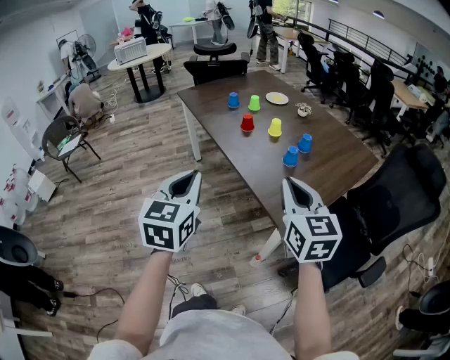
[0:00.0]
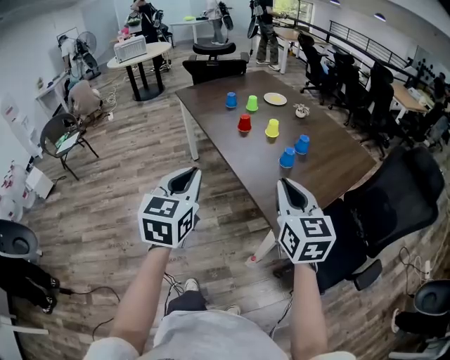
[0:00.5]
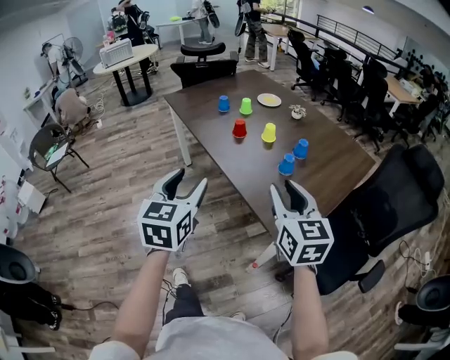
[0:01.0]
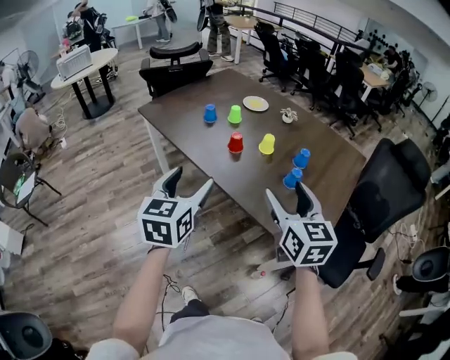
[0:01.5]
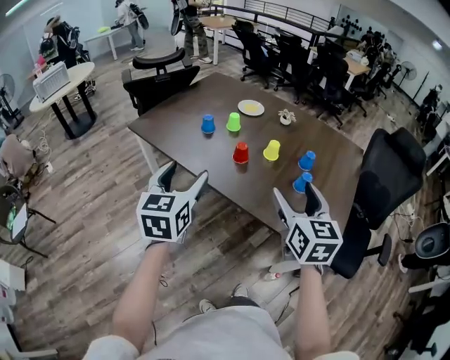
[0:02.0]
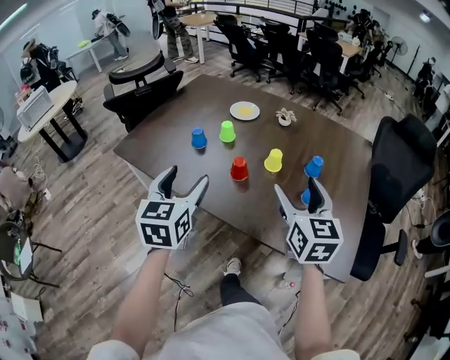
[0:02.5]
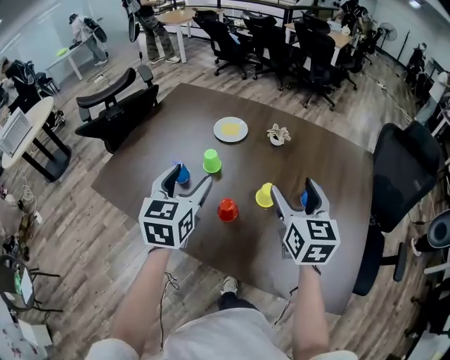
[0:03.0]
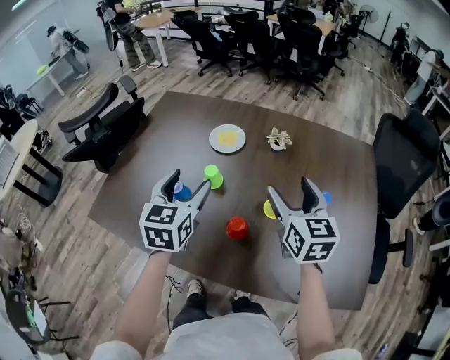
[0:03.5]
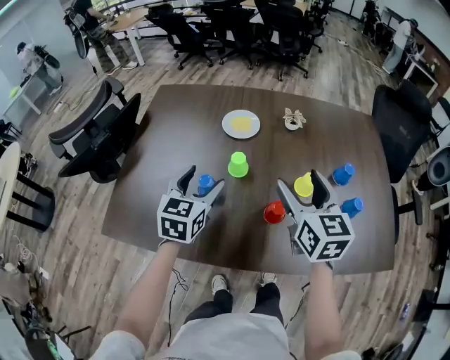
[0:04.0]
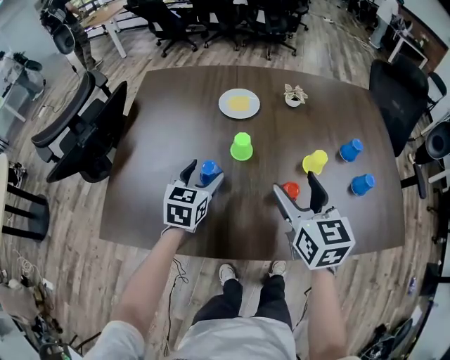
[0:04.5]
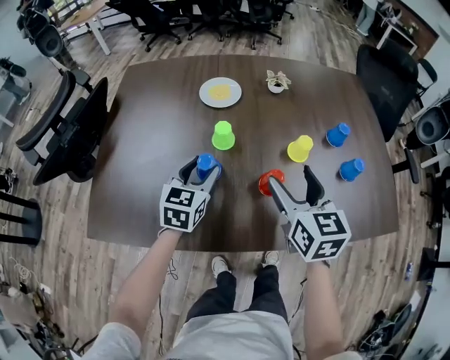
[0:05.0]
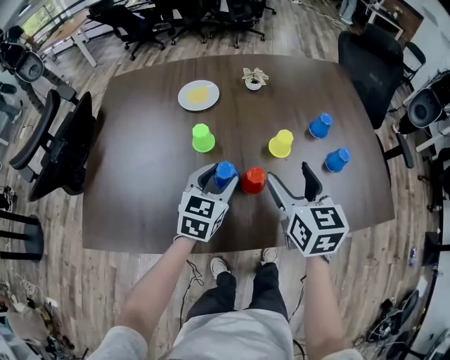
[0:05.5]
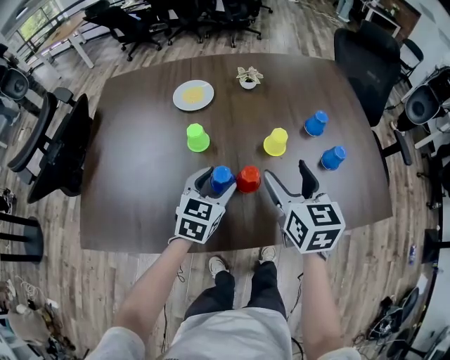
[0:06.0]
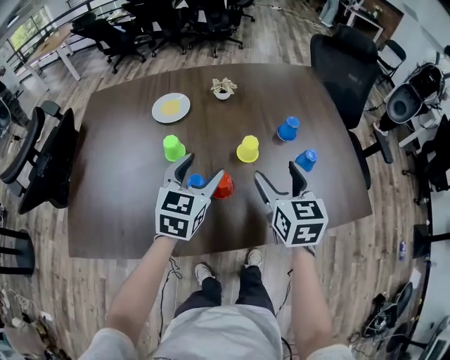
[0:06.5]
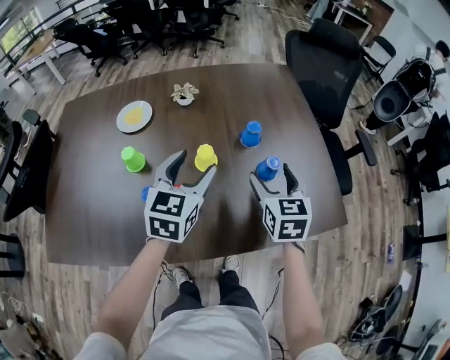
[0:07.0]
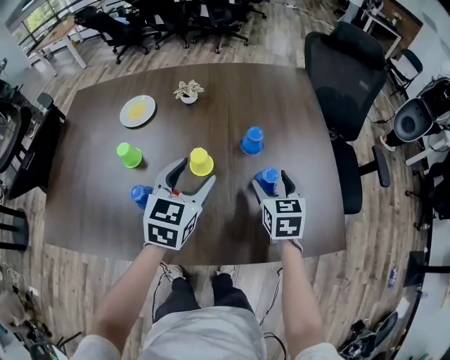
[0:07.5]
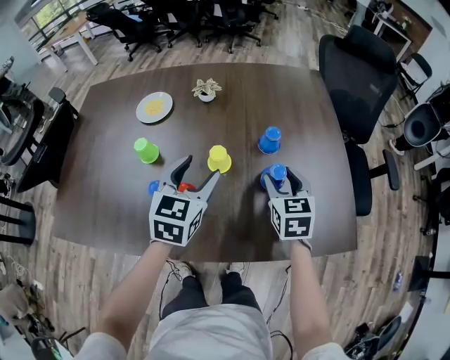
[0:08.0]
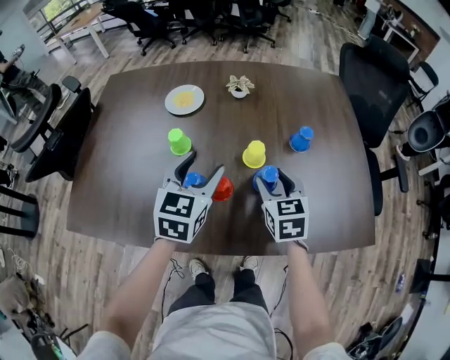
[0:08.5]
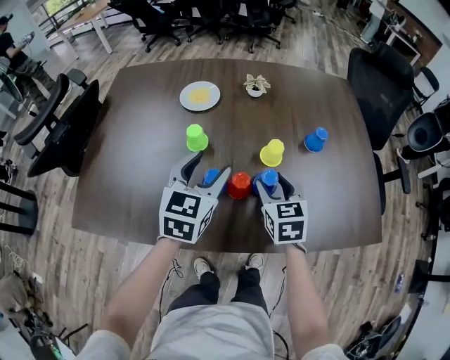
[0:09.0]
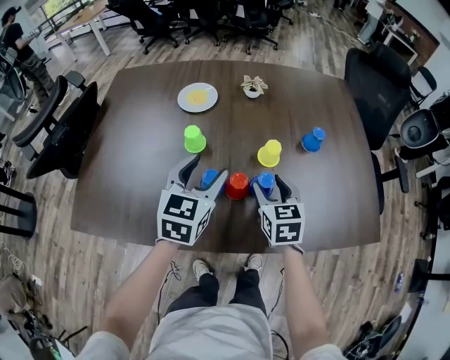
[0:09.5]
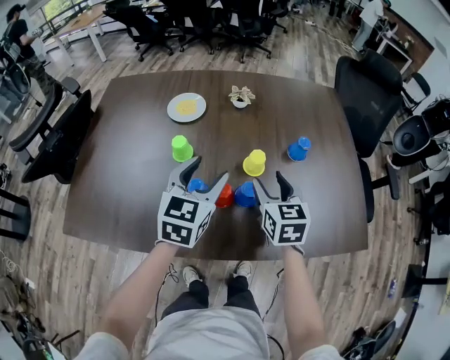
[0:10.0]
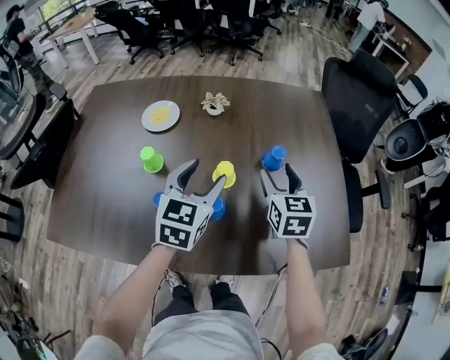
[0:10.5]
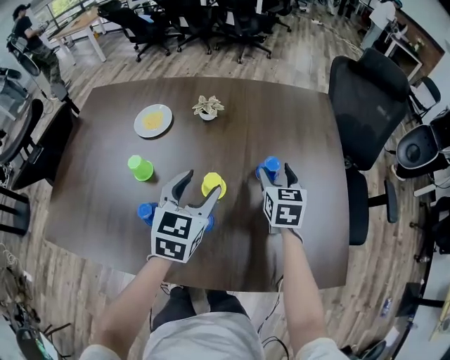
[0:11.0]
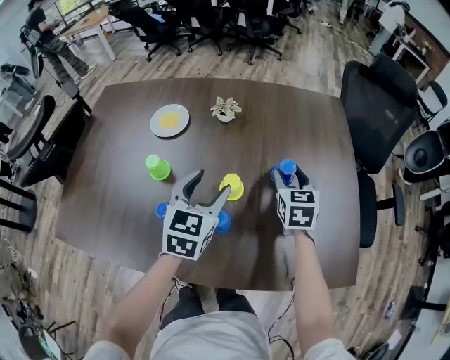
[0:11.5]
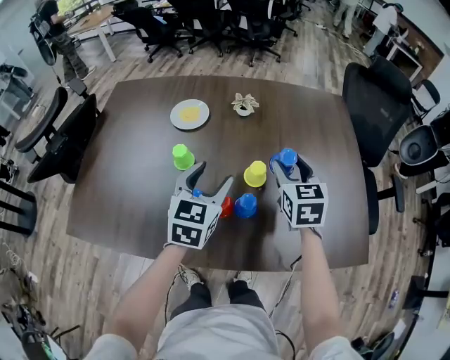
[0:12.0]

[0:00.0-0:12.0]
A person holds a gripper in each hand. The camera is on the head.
0:00.0 to 0:02.0: The left gripper moves about 40 cm, rotates about 20 degrees, and opens its fingers. The right gripper moves roughly 25 cm, turns by about 30 degrees, and opens.
0:02.0 to 0:04.0: The right gripper shifts by some 35 cm, and turns by approximately 20 degrees. The left gripper changes place by roughly 40 cm, and turns by some 40 degrees.
0:04.0 to 0:06.0: The left gripper travels to the right and downward by about 20 cm, and changes its angle by some 20 degrees; the right gripper moves downward and to the right, about 10 cm.
0:06.0 to 0:08.0: The right gripper travels to the right, forward and downward by some 20 cm, and closes its fingers. The left gripper moves to the right, upward and forward, roughly 20 cm.
0:08.0 to 0:10.0: The grippers both shift to the left by some 15 cm.
0:10.0 to 0:12.0: The right gripper moves forward, roughly 10 cm. Meanwhile the left gripper reaches about 10 cm to the right, then returns.

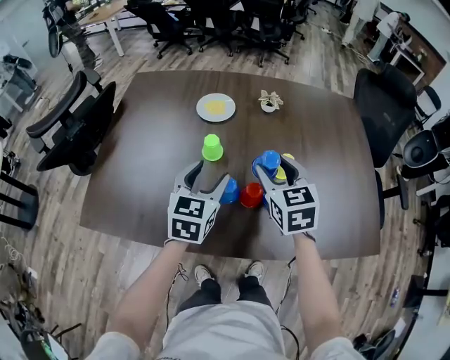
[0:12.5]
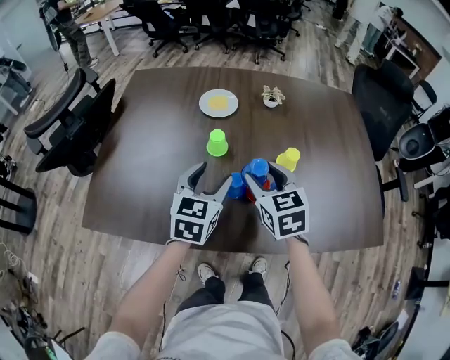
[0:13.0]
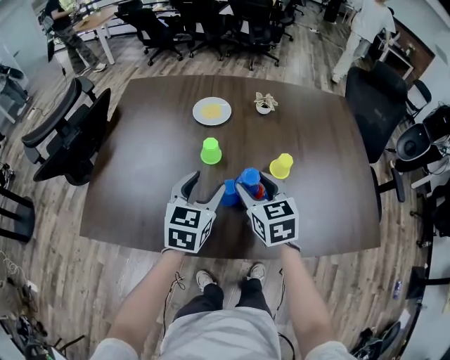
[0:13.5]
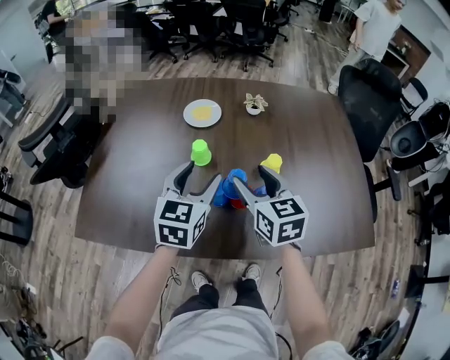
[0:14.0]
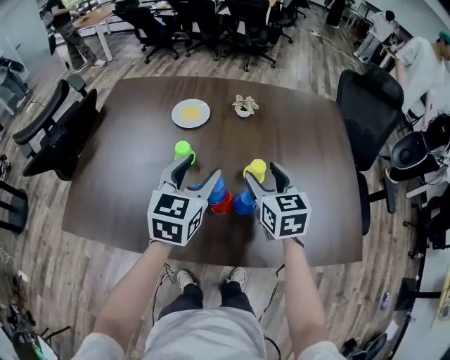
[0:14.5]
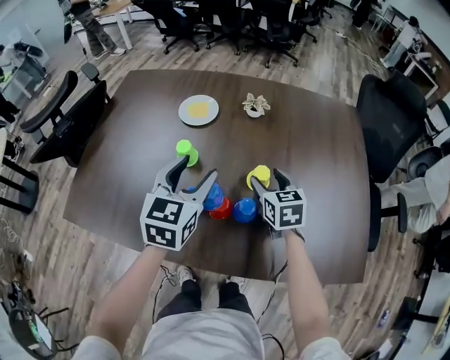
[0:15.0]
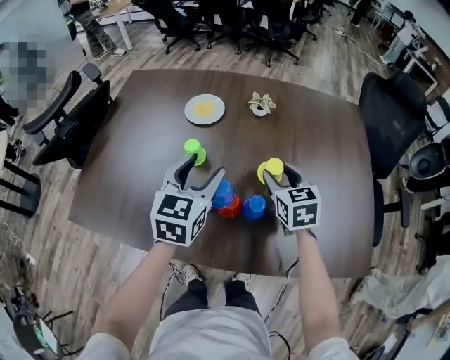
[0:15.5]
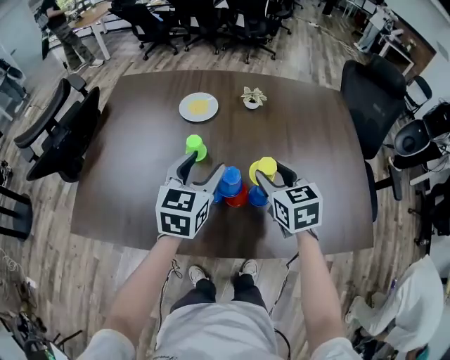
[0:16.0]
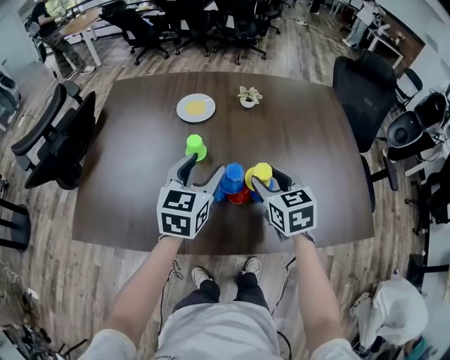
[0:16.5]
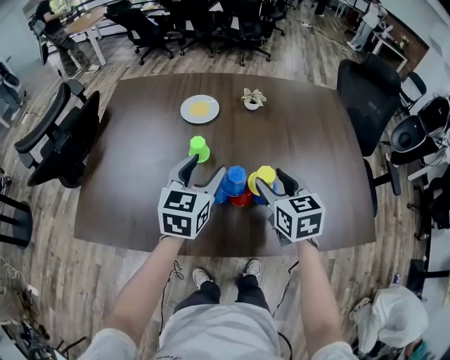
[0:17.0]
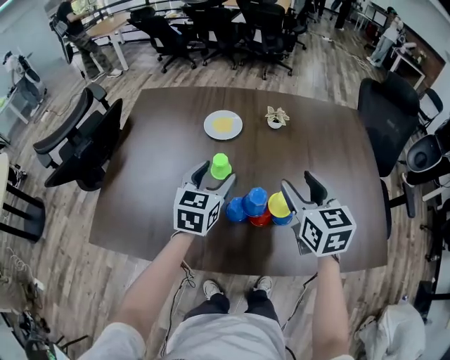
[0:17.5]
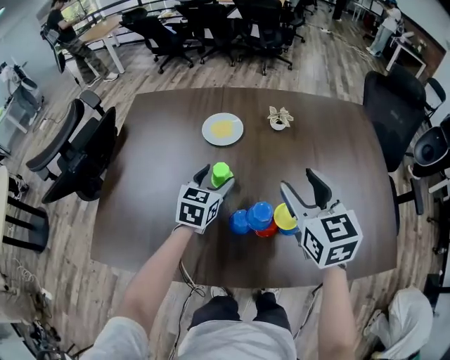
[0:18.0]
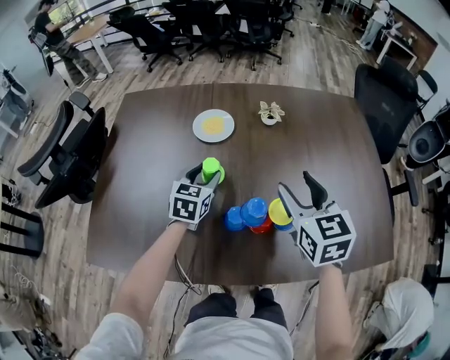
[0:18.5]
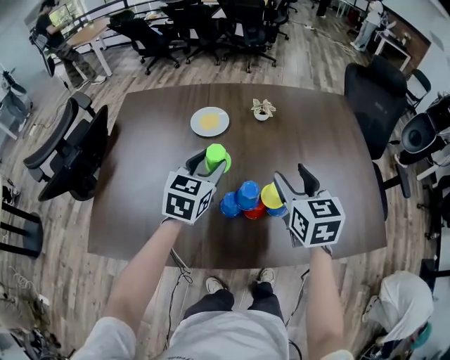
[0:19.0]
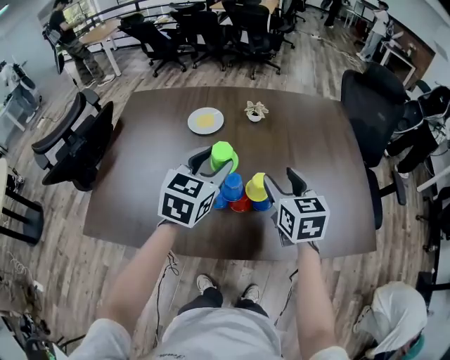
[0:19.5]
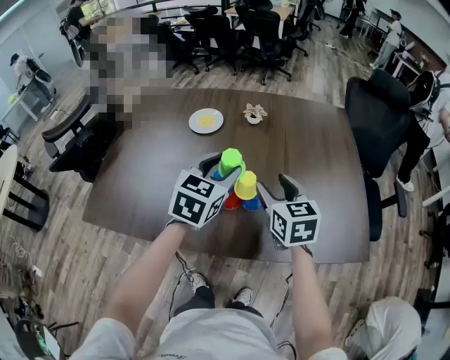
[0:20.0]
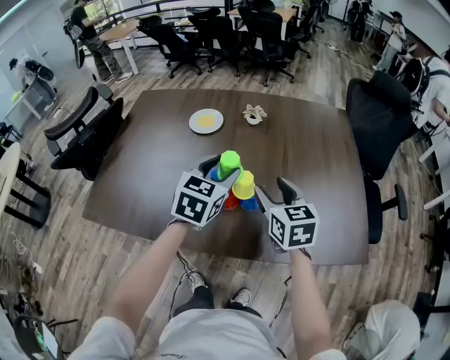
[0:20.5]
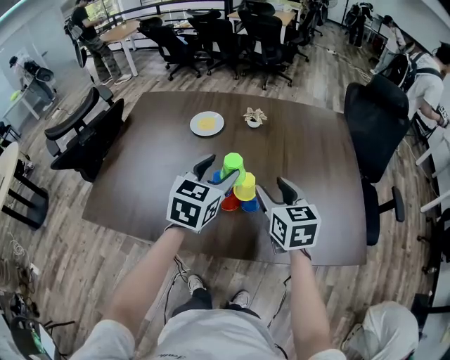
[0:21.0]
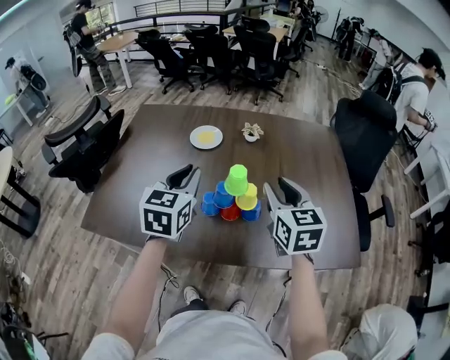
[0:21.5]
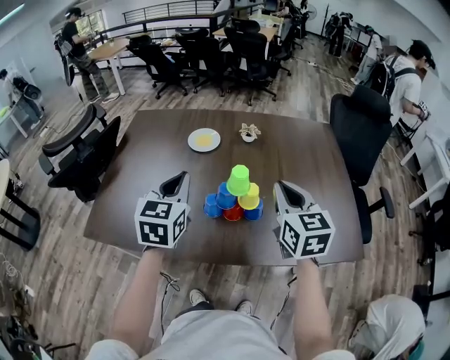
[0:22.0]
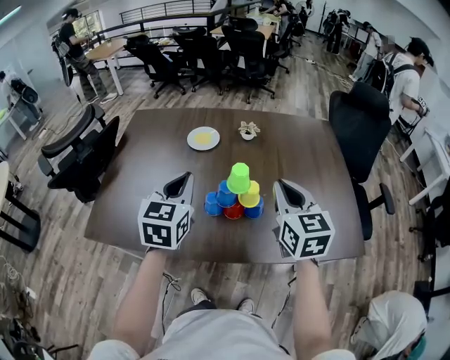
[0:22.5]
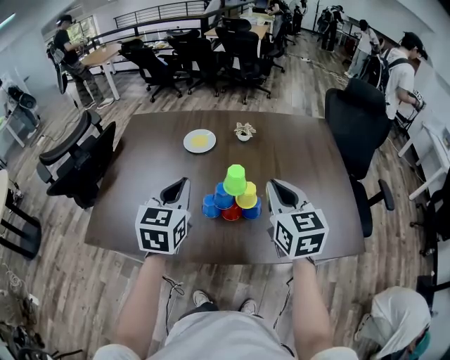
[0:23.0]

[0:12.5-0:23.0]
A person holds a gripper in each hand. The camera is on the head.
0:12.5 to 0:14.5: Both grippers move to the right, some 5 cm.
0:14.5 to 0:16.5: The right gripper moves roughly 10 cm downward and comes back.
0:16.5 to 0:19.0: The right gripper goes about 5 cm upward. Meanwhile the left gripper travels forward by approximately 5 cm, and reaches about 10 cm downward, then returns.
0:19.0 to 0:21.0: The left gripper goes approximately 15 cm to the right, backward and upward; the right gripper is displaced backward by some 5 cm.
0:21.0 to 0:23.0: The right gripper is displaced upward by about 10 cm, and closes its fingers; the left gripper shifts approximately 10 cm to the left, and closes up.

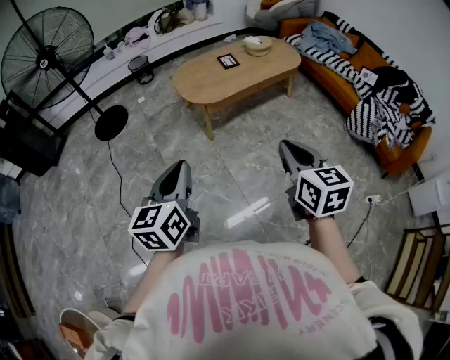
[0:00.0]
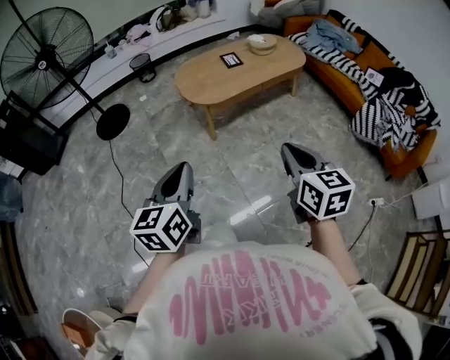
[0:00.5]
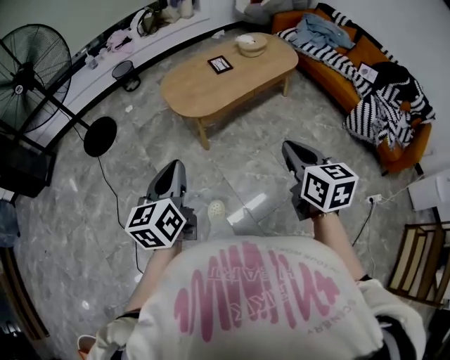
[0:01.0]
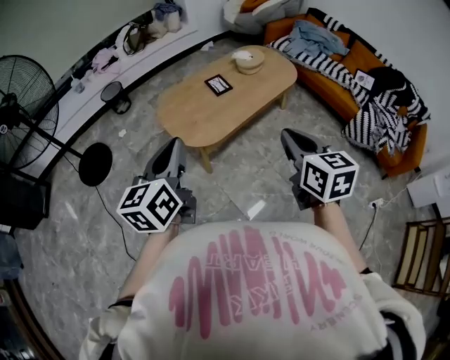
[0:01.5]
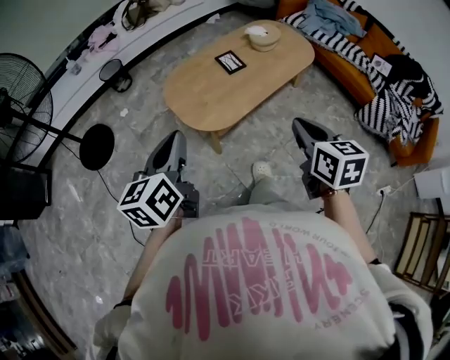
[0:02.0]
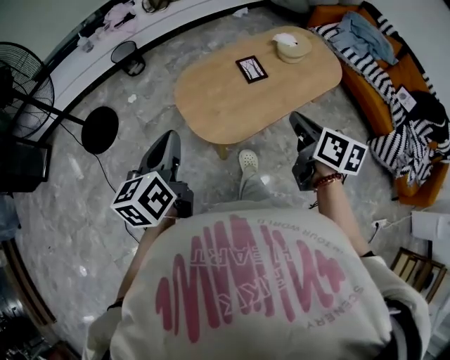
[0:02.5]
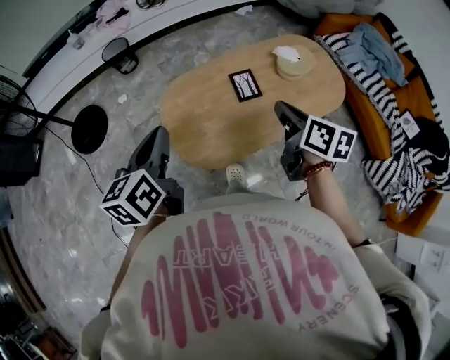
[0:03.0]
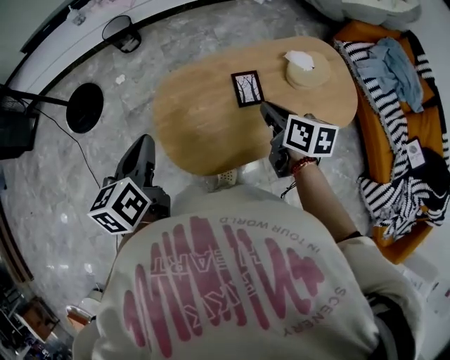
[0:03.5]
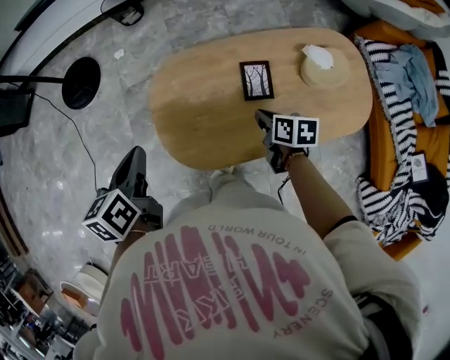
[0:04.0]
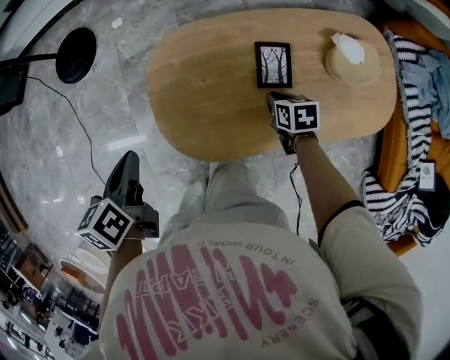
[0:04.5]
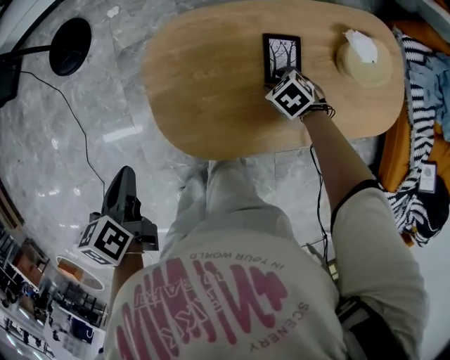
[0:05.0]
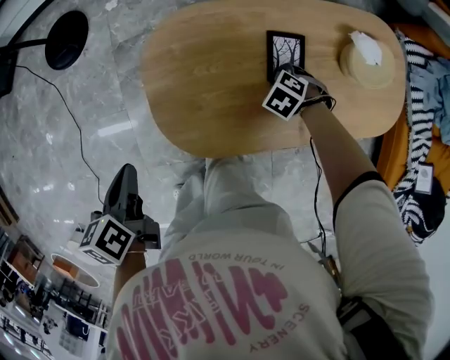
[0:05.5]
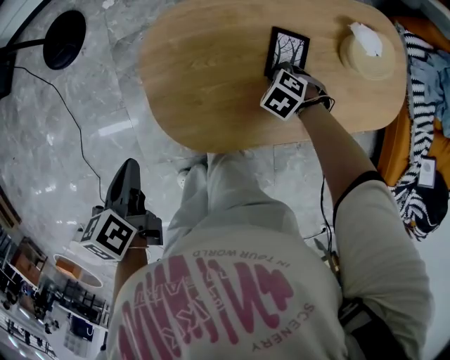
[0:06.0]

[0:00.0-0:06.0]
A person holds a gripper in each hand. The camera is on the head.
0:00.0 to 0:02.0: The grippers both shift forward by roughly 40 cm.
0:02.0 to 0:04.0: The right gripper shifts by approximately 50 cm, and changes its angle by roughly 40 degrees. Meanwhile the left gripper moves roughly 30 cm, and turns by approximately 40 degrees.
0:04.0 to 0:06.0: The right gripper moves downward, roughly 15 cm, rolls counterclockwise, seen from behind, by roughly 70 degrees, and opens and closes again; the left gripper moves downward, approximately 10 cm.
